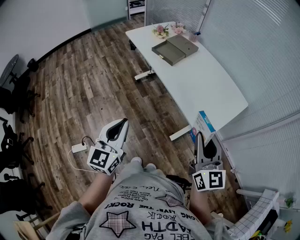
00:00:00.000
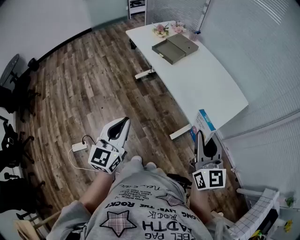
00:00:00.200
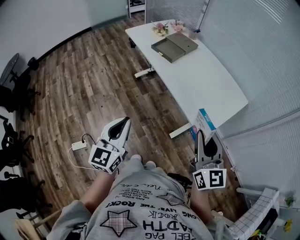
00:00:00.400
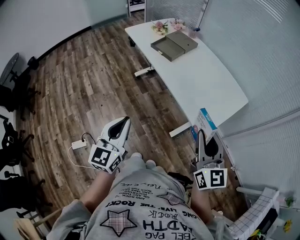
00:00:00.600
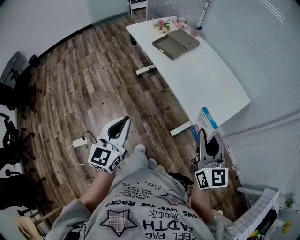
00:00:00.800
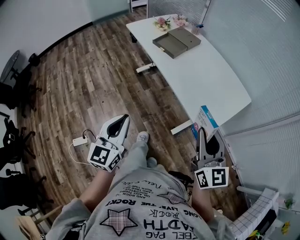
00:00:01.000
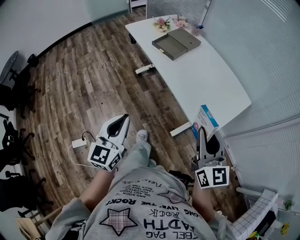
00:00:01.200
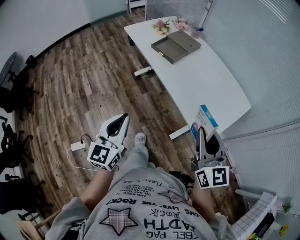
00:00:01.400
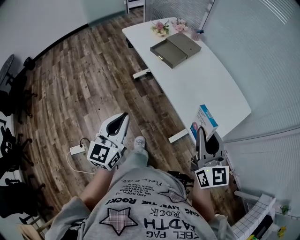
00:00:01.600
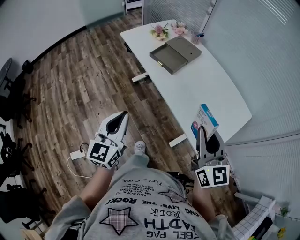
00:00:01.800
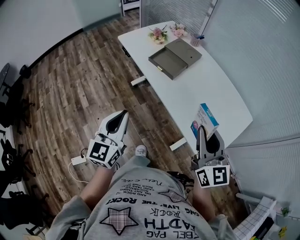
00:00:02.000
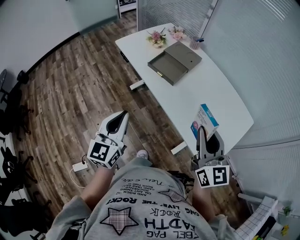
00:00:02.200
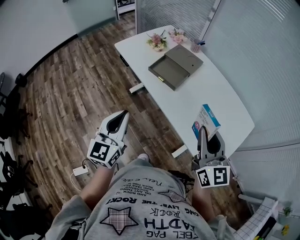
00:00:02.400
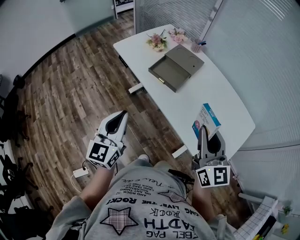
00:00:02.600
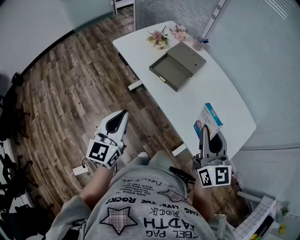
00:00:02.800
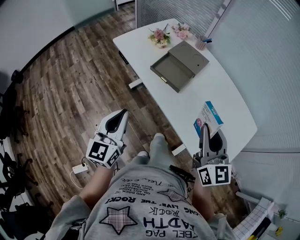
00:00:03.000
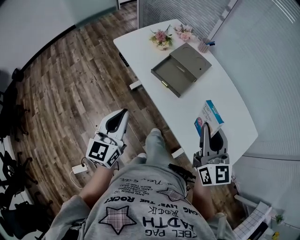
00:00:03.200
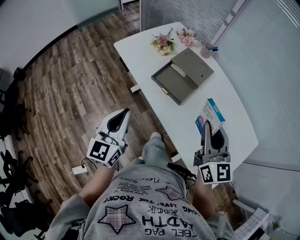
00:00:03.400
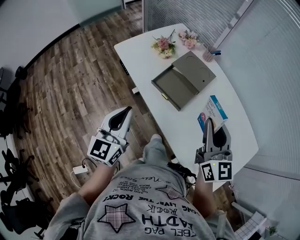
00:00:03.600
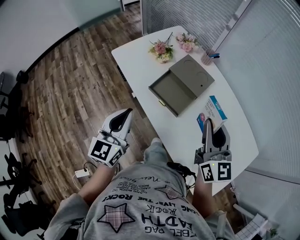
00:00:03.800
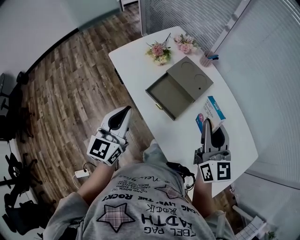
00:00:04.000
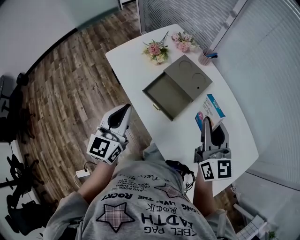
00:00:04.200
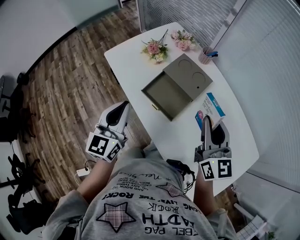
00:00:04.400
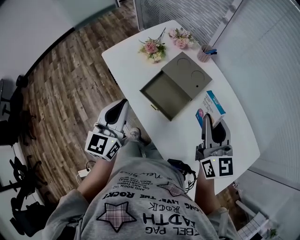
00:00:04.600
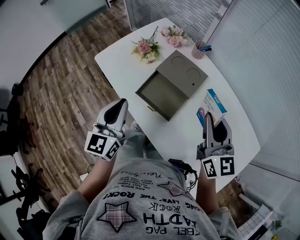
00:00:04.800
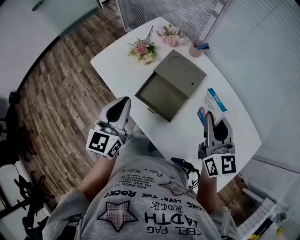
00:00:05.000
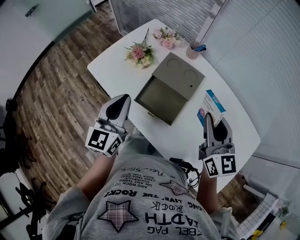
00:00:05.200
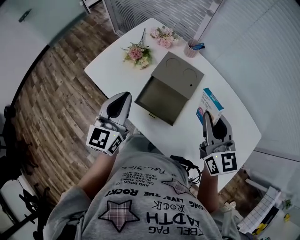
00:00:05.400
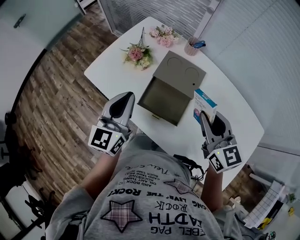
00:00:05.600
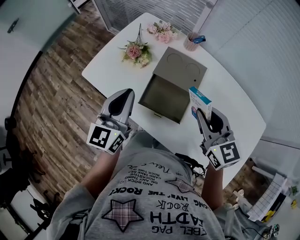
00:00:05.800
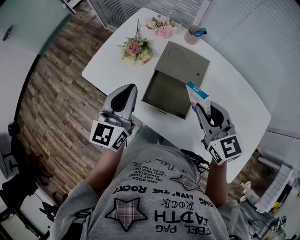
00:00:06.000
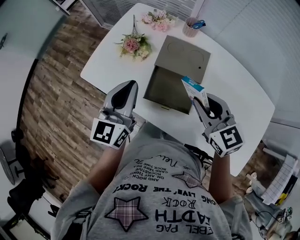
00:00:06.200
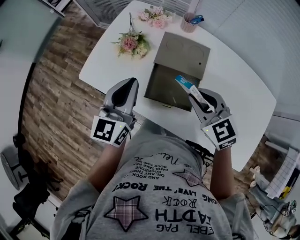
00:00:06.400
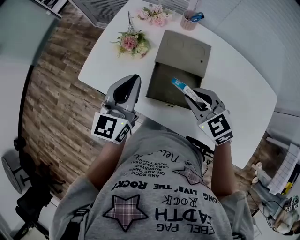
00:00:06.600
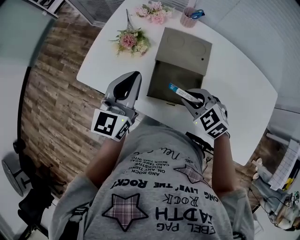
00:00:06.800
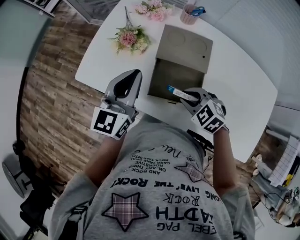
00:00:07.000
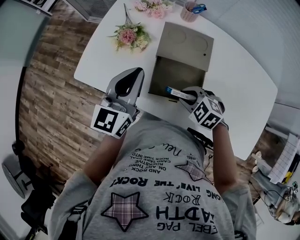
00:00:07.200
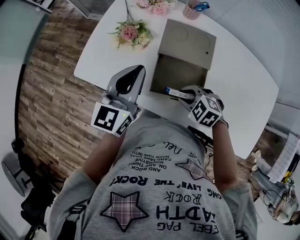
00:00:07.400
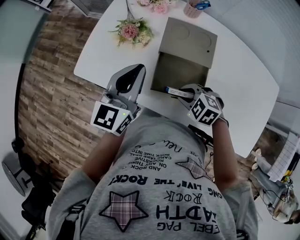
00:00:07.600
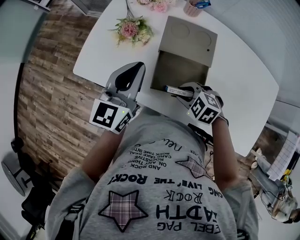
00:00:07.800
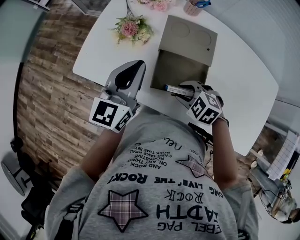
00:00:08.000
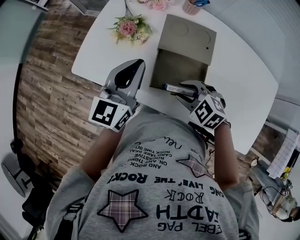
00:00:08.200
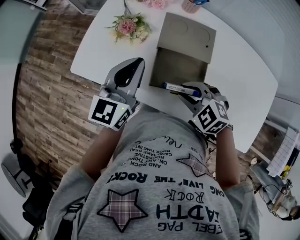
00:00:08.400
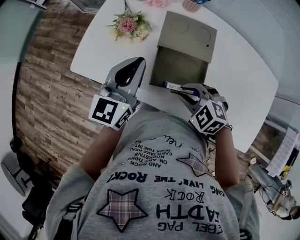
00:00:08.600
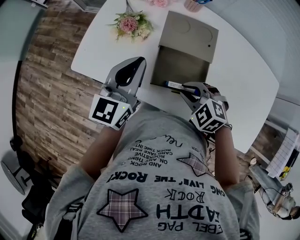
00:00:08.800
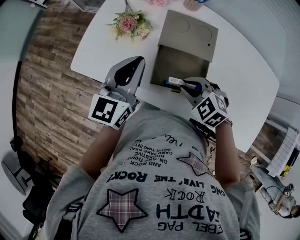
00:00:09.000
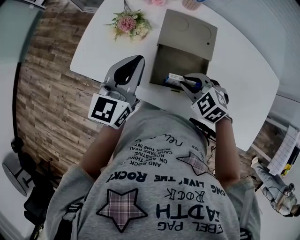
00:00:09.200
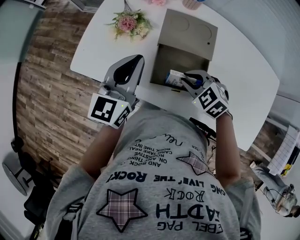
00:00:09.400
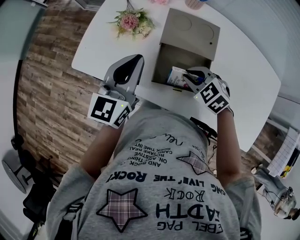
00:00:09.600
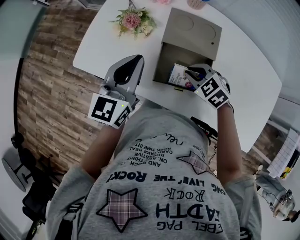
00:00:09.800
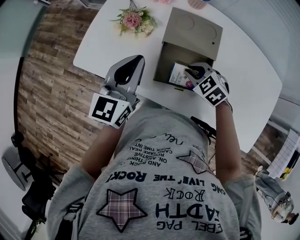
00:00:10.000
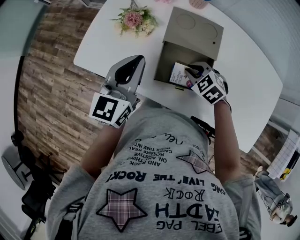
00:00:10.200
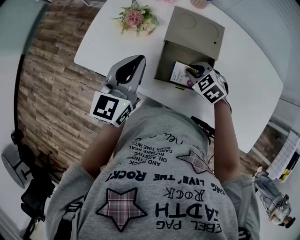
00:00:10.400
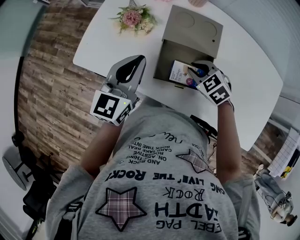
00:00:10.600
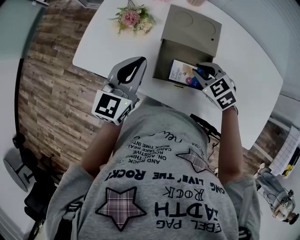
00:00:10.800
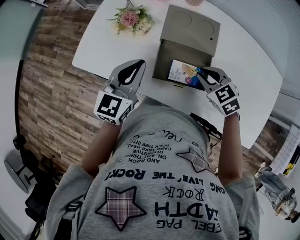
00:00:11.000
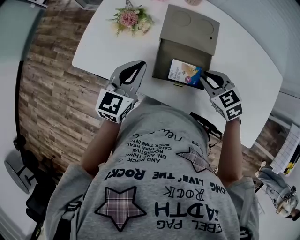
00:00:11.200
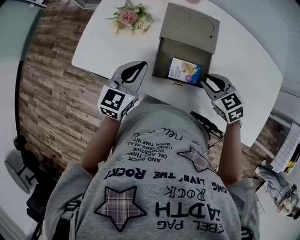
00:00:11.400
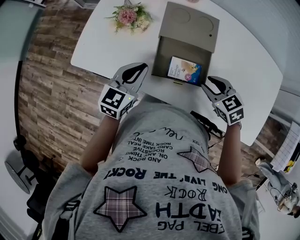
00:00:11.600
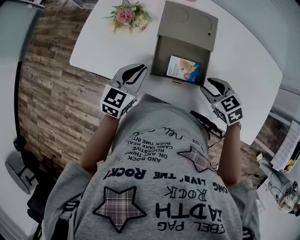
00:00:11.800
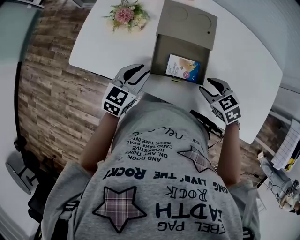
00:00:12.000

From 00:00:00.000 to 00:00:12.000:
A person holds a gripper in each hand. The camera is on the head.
From 00:00:00.000 to 00:00:01.600: The grippers both shift forward by some 10 cm.
From 00:00:01.600 to 00:00:03.000: The grippers both shift forward by some 25 cm.
From 00:00:03.000 to 00:00:04.400: The grippers both shift forward by roughly 20 cm.
From 00:00:04.400 to 00:00:06.000: The left gripper is displaced forward by about 15 cm, and swivels about 20 degrees, while the right gripper heads to the left, downward and forward, covering about 10 cm, and swivels roughly 20 degrees.
From 00:00:06.000 to 00:00:07.600: The left gripper heads downward, covering some 5 cm; the right gripper travels downward and to the left by some 25 cm, and tilts its fingers about 40 degrees downward.
From 00:00:07.600 to 00:00:09.000: The grippers move only a little.
From 00:00:09.000 to 00:00:10.400: The right gripper is displaced downward by some 5 cm.
From 00:00:10.400 to 00:00:12.000: The right gripper travels backward and to the right by some 10 cm, changes its angle by some 20 degrees, and opens. The left gripper goes approximately 15 cm downward, and turns by about 30 degrees.

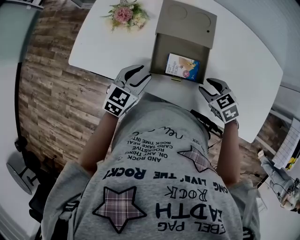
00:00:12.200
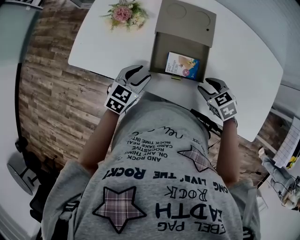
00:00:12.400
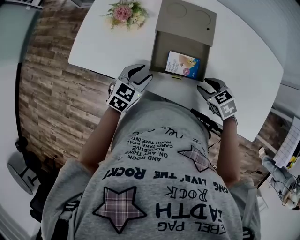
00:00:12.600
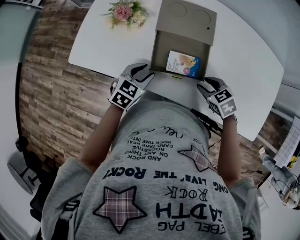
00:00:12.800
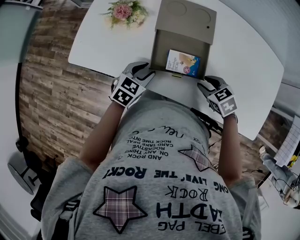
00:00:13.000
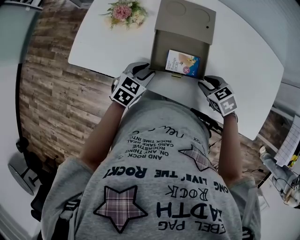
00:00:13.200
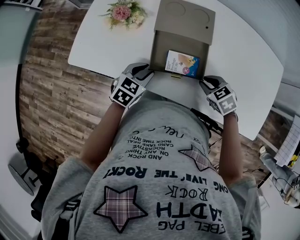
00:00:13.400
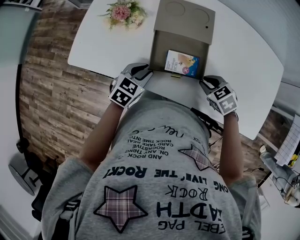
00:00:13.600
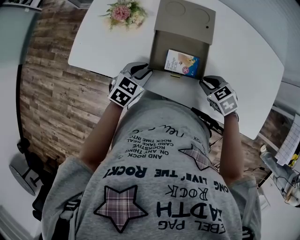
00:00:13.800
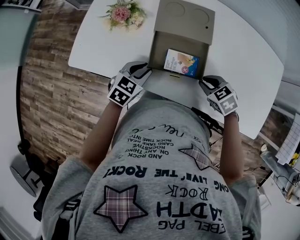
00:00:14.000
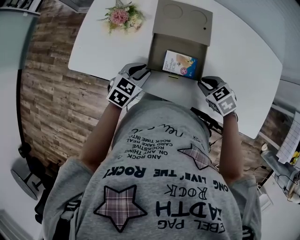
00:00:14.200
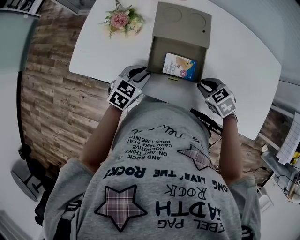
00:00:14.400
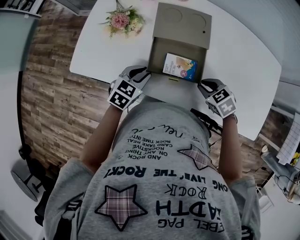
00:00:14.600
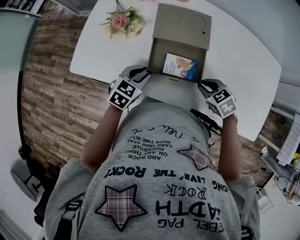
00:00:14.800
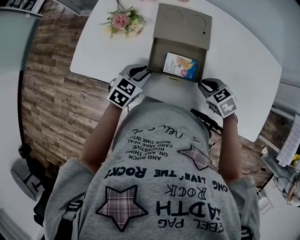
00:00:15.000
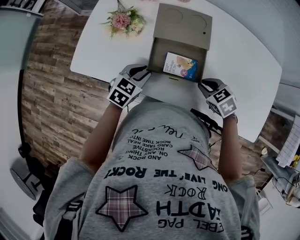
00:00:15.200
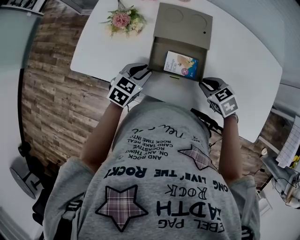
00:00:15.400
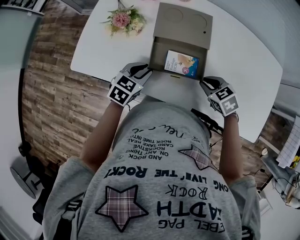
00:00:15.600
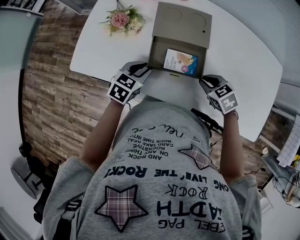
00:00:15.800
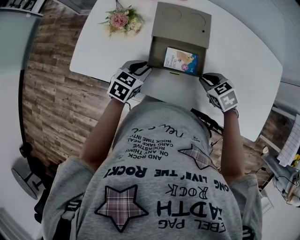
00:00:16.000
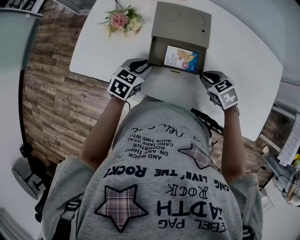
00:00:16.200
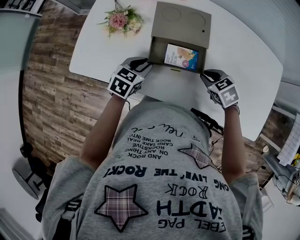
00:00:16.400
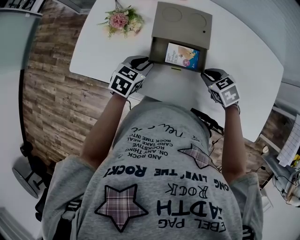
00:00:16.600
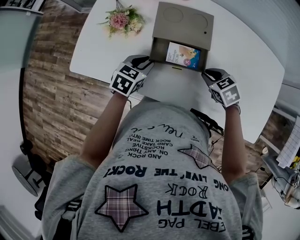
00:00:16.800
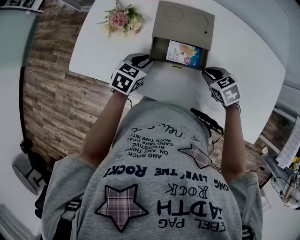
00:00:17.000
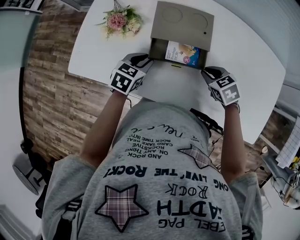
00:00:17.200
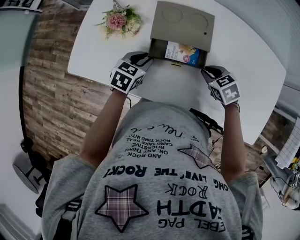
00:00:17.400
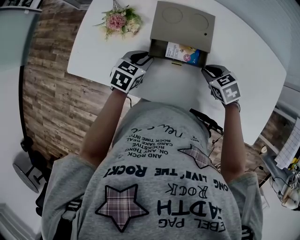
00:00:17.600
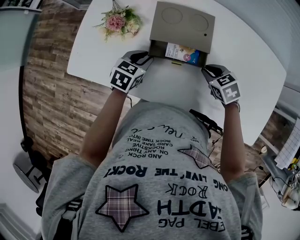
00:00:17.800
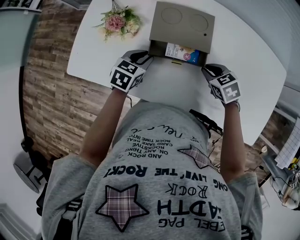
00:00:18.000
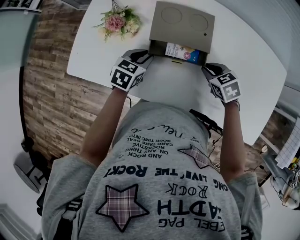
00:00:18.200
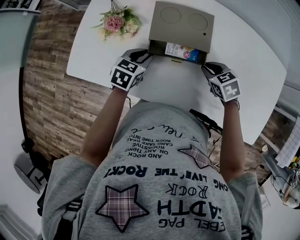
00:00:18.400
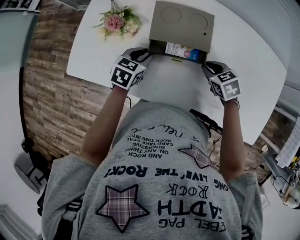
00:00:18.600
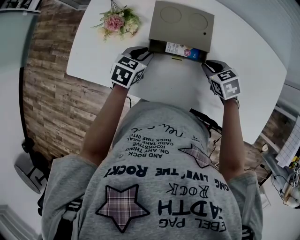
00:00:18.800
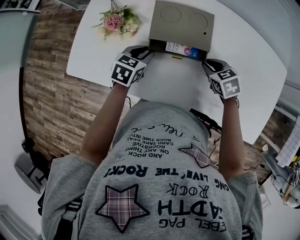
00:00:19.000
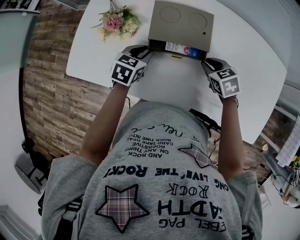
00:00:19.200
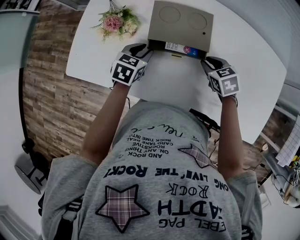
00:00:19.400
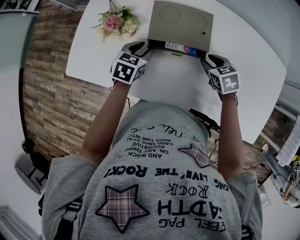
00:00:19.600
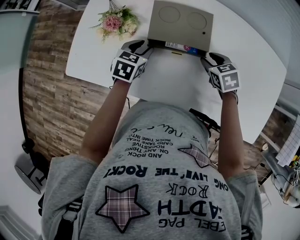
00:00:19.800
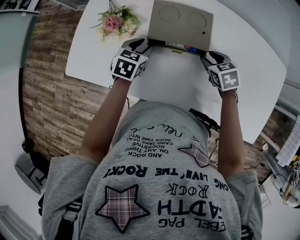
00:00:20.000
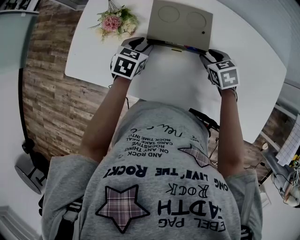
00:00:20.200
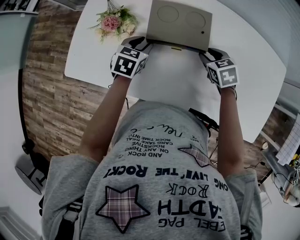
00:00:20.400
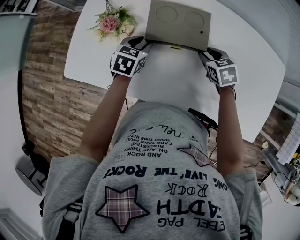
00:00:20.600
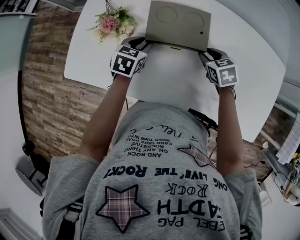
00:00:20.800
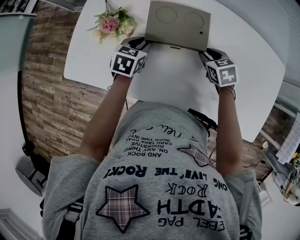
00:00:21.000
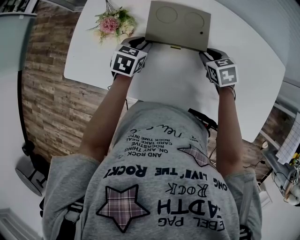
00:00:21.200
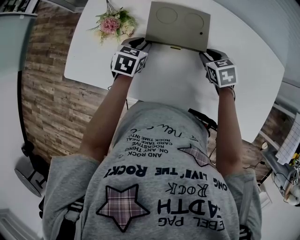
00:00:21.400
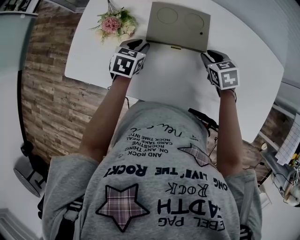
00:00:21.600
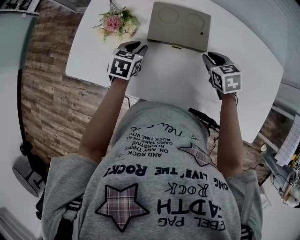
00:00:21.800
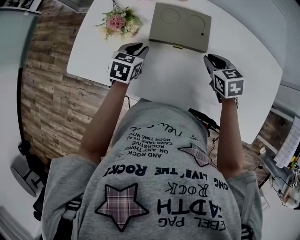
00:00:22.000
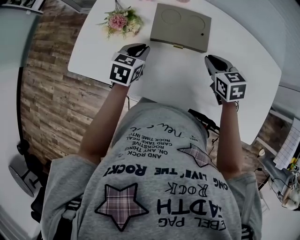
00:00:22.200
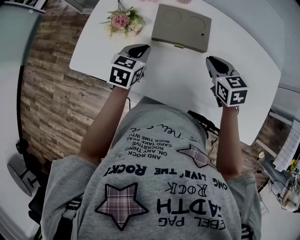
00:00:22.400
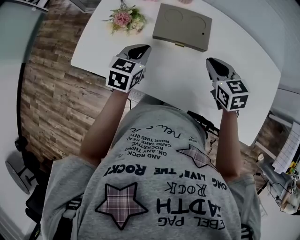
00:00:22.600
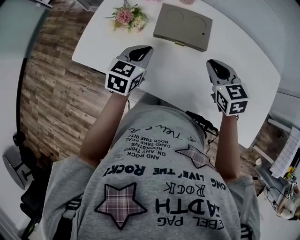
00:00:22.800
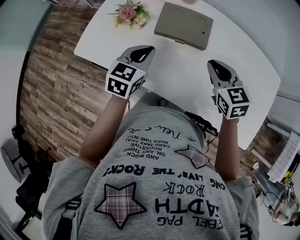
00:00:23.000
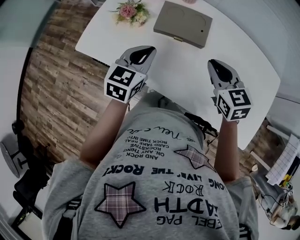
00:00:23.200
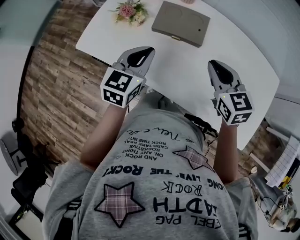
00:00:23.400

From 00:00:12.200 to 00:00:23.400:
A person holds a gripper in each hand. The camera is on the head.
From 00:00:12.200 to 00:00:13.800: The right gripper closes.
From 00:00:13.800 to 00:00:15.400: The grippers move only a little.
From 00:00:15.400 to 00:00:17.000: The right gripper is displaced forward by approximately 5 cm. The left gripper changes place by some 5 cm.
From 00:00:17.000 to 00:00:18.600: The grippers move only a little.
From 00:00:18.600 to 00:00:21.800: The grippers move only a little.
From 00:00:21.800 to 00:00:23.400: The two grippers go about 20 cm upward and backward. The right gripper turns by approximately 30 degrees. The left gripper swivels roughly 30 degrees, and closes its fingers.

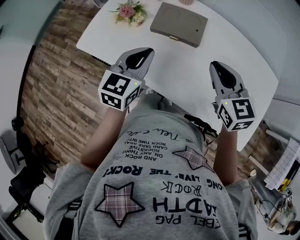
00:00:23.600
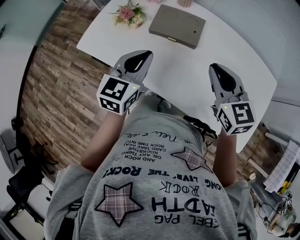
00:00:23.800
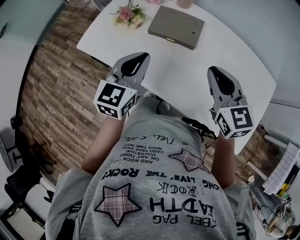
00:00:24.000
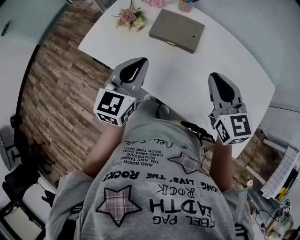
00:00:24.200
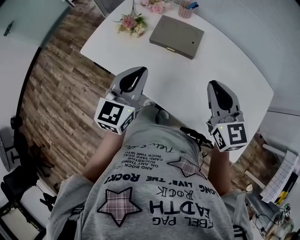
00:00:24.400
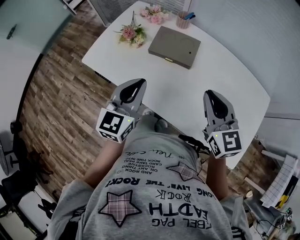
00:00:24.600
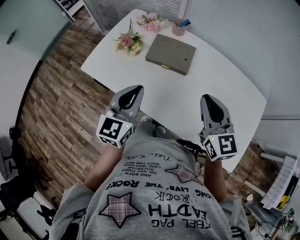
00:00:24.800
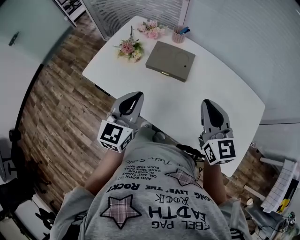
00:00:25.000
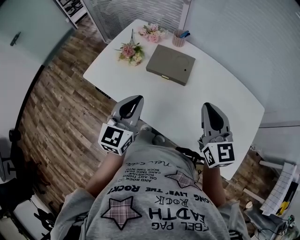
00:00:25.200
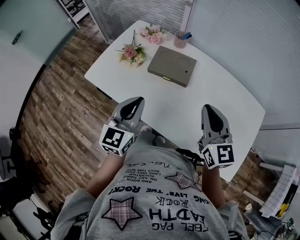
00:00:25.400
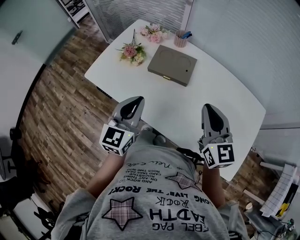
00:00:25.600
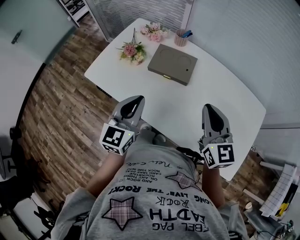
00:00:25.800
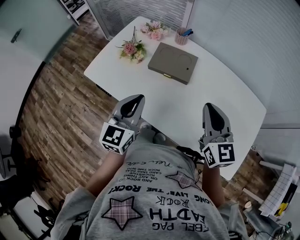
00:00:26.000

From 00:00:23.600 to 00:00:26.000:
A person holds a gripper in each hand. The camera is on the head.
From 00:00:23.600 to 00:00:24.800: The right gripper ends up some 5 cm from where it was. Meanwhile the left gripper is displaced backward by some 5 cm.
From 00:00:24.800 to 00:00:26.000: The grippers make only small movements.
